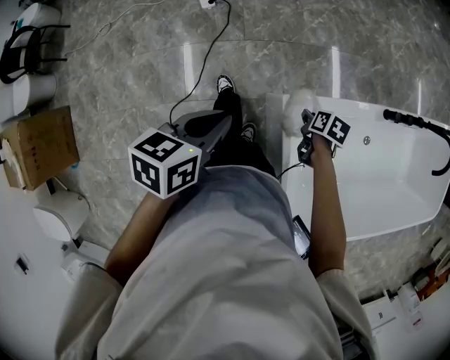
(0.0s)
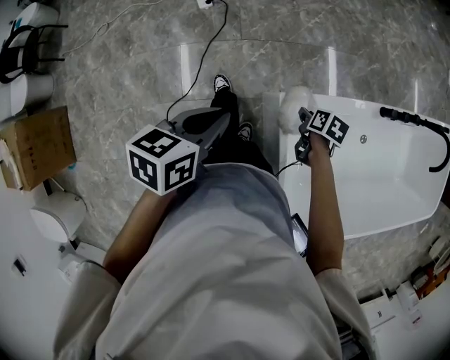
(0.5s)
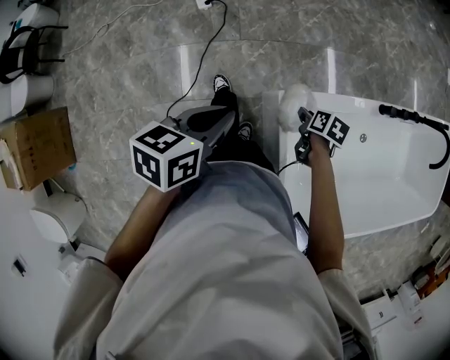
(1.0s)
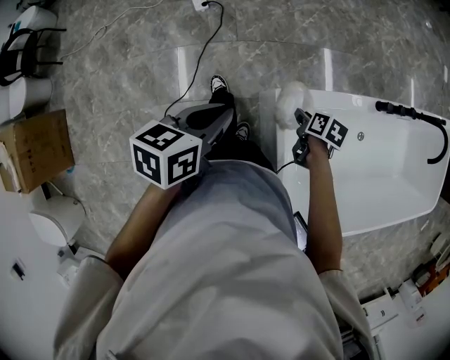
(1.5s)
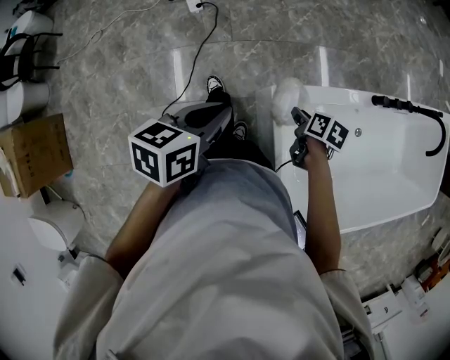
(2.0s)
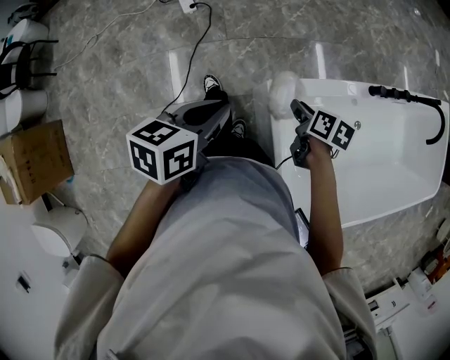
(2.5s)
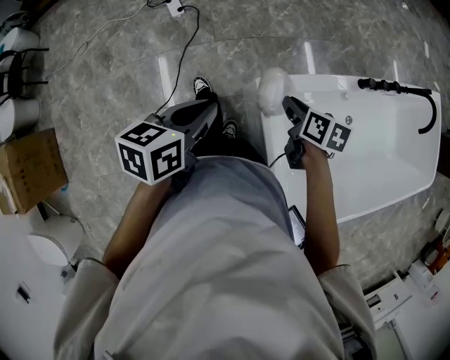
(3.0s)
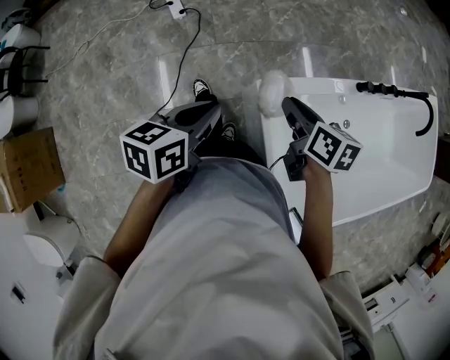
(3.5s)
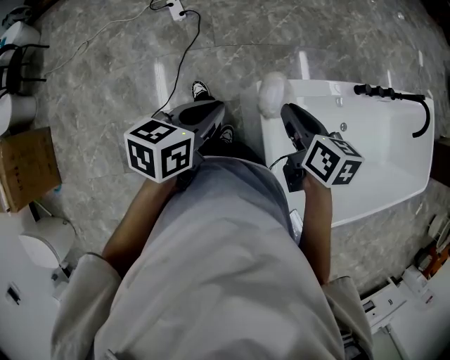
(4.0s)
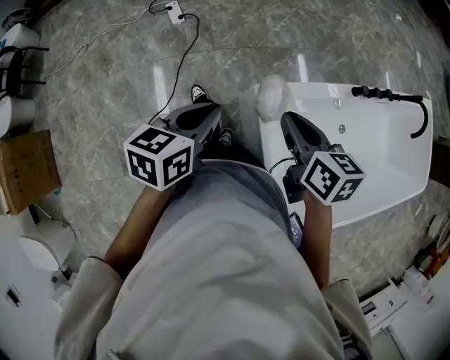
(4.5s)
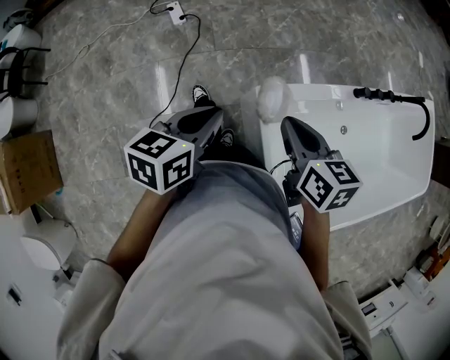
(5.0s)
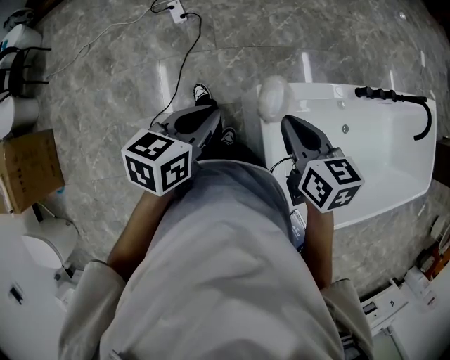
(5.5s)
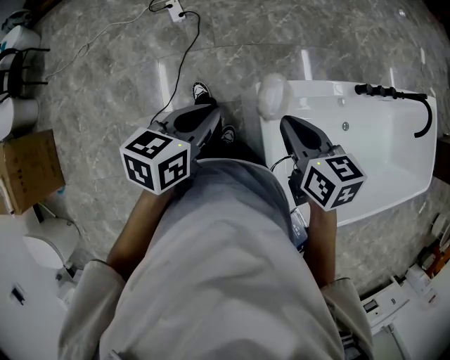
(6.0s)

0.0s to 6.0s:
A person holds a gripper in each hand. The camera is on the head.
0.0s to 2.0s: The right gripper changes place by approximately 5 cm.
2.0s to 4.0s: The right gripper moves upward, roughly 20 cm, and turns by approximately 30 degrees.
4.0s to 6.0s: There are only small adjustments of the grippers.

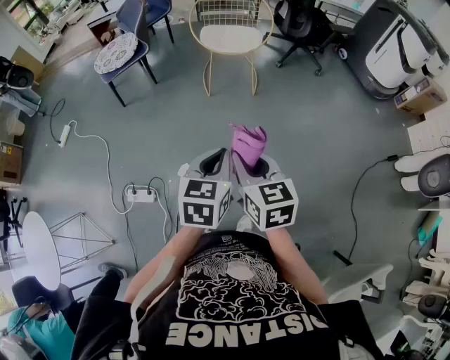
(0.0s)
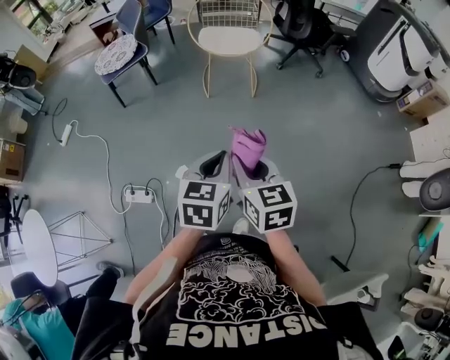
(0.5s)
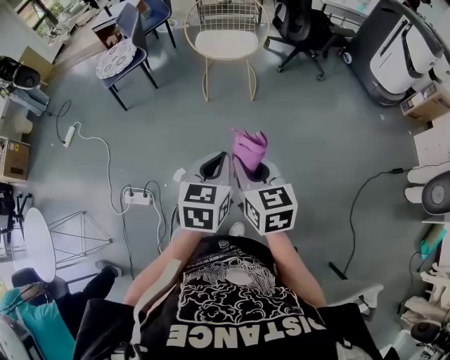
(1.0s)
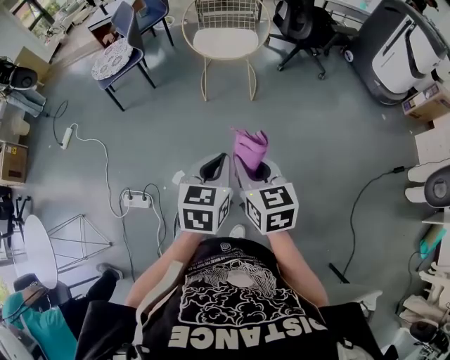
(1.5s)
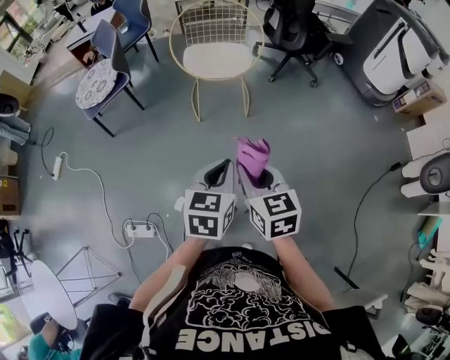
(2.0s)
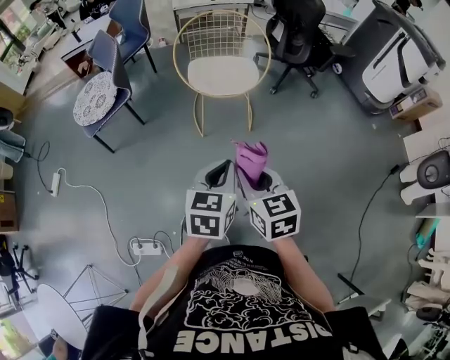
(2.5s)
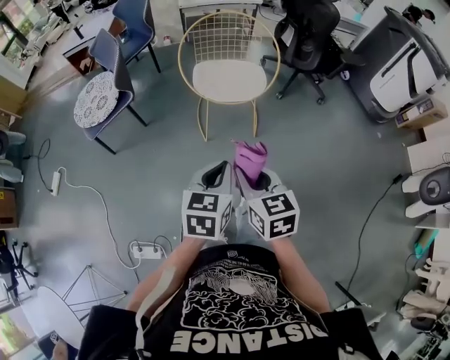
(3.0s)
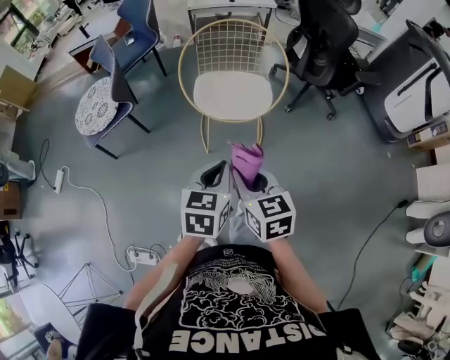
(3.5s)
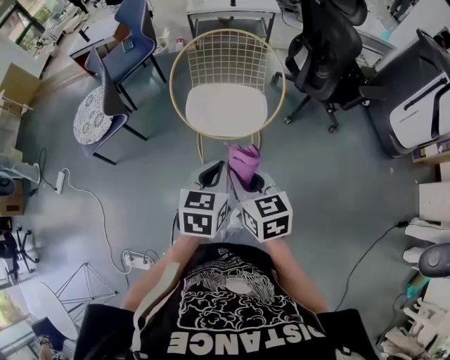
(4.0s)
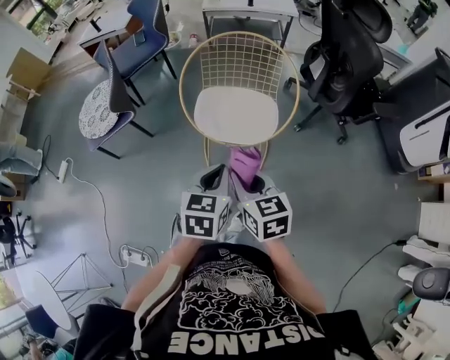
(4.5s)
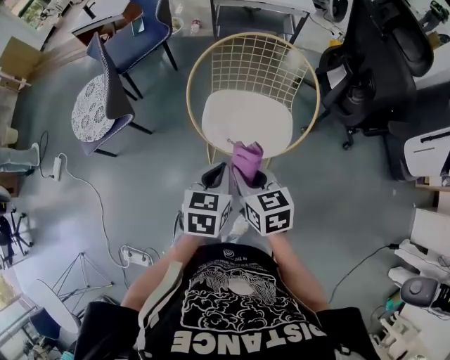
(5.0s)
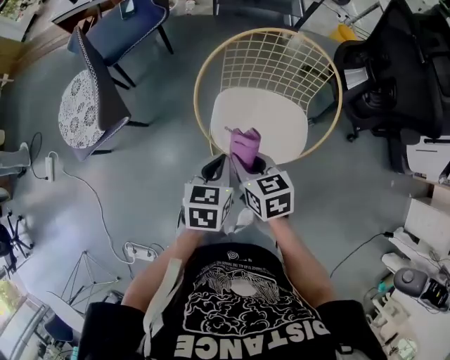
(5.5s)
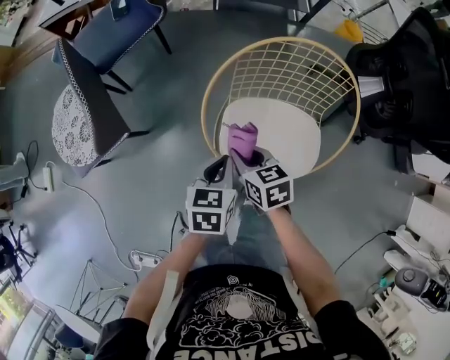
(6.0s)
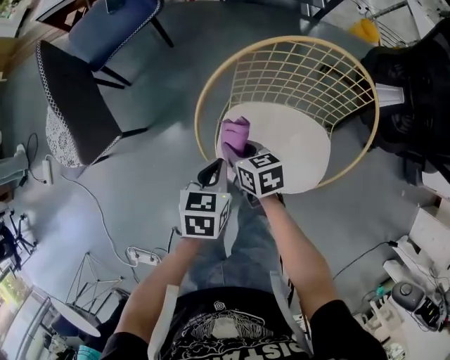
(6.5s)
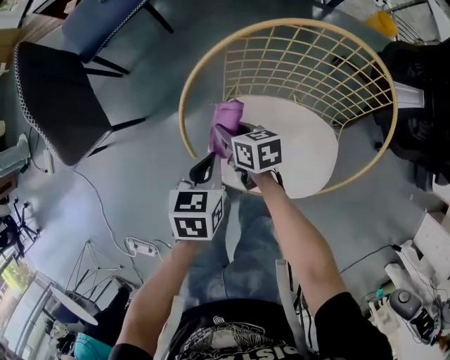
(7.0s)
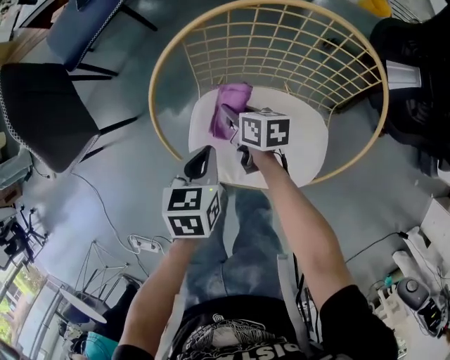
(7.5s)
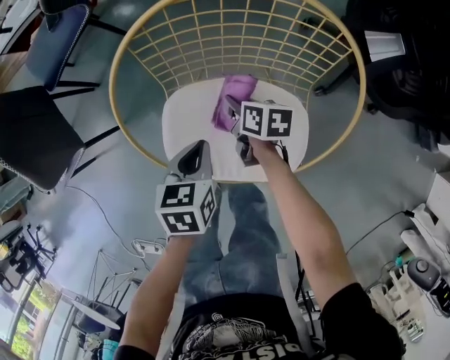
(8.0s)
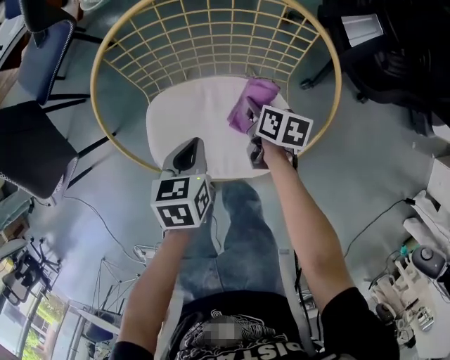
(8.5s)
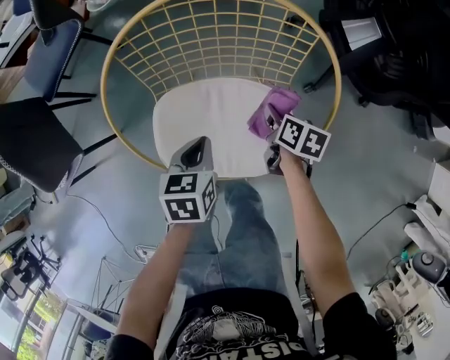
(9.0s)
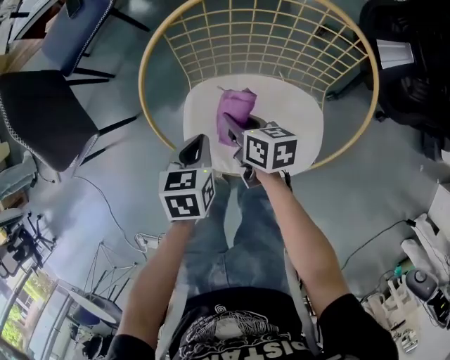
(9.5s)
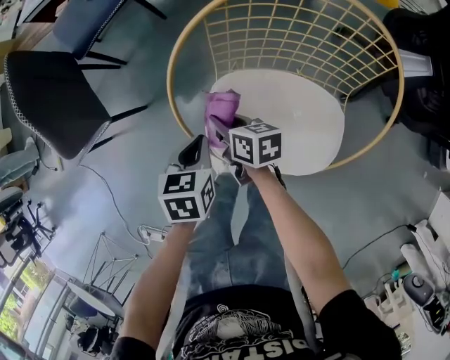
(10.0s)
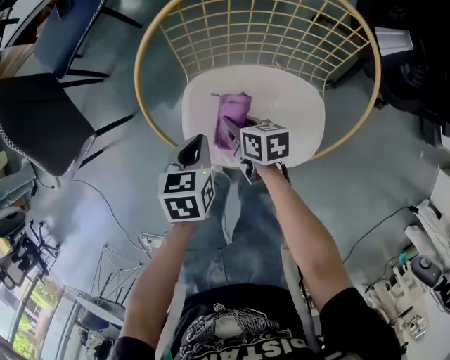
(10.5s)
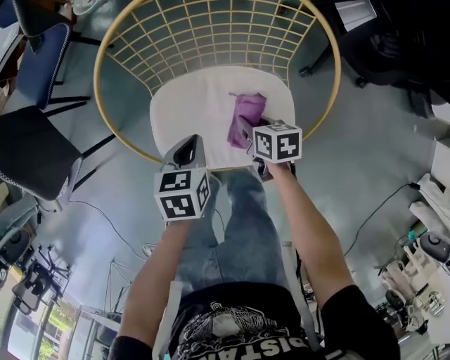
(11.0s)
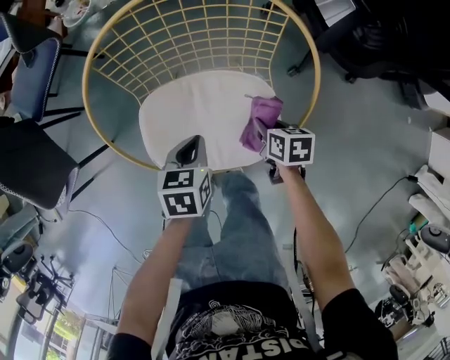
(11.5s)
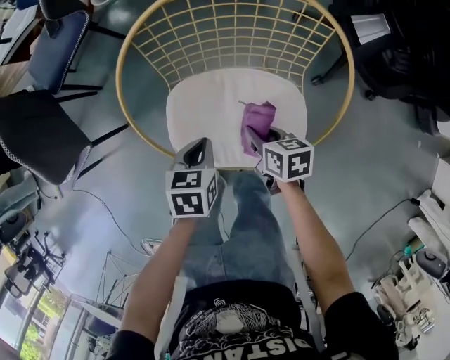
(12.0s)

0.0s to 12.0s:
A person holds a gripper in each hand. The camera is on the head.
0.0s to 2.0s: The two grippers go about 20 cm forward.
2.0s to 4.0s: The grippers both shift forward by roughly 35 cm.
4.0s to 6.0s: The two grippers go some 40 cm forward, downward and to the left. The right gripper changes its angle by roughly 20 degrees.
6.0s to 8.0s: The left gripper shifts about 15 cm to the right and downward. Meanwhile the right gripper moves downward, to the right and forward, some 25 cm, and rotates roughly 30 degrees.
8.0s to 10.0s: The left gripper moves about 10 cm. The right gripper moves approximately 20 cm.
10.0s to 12.0s: The left gripper is displaced to the right by roughly 10 cm, while the right gripper moves to the right, approximately 20 cm.

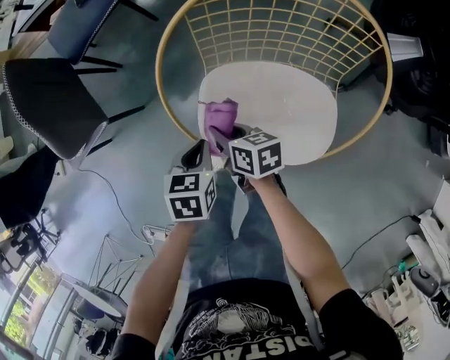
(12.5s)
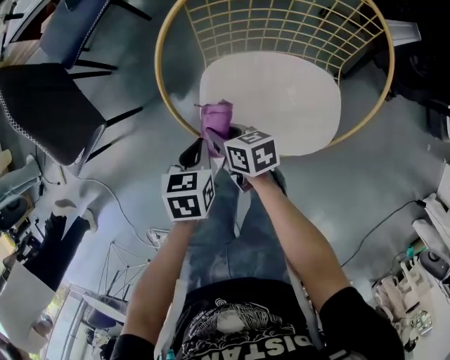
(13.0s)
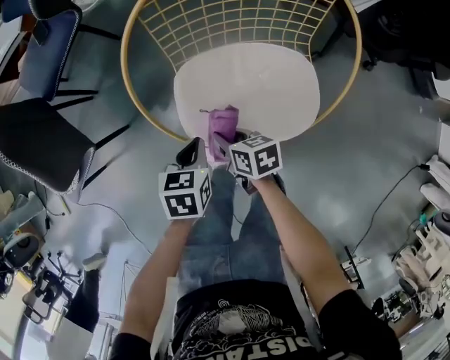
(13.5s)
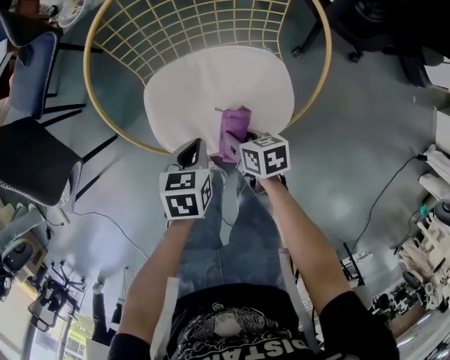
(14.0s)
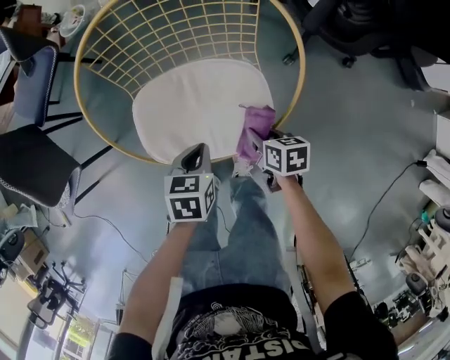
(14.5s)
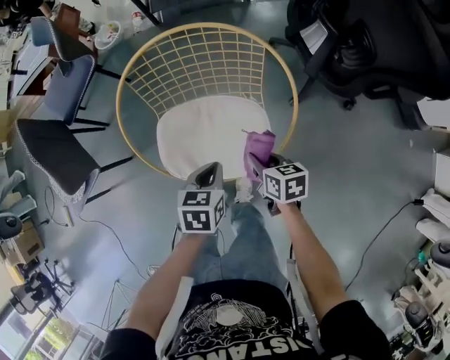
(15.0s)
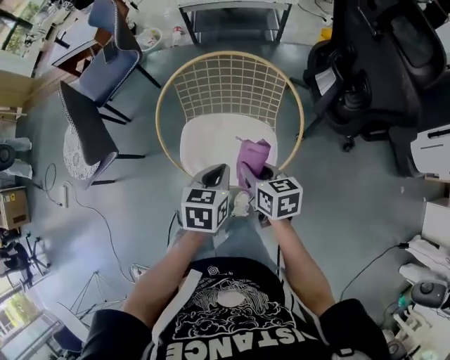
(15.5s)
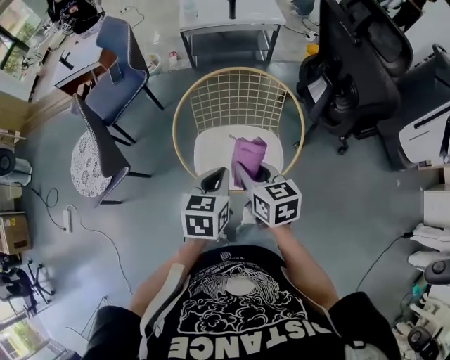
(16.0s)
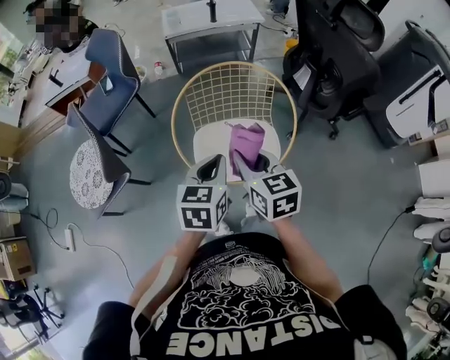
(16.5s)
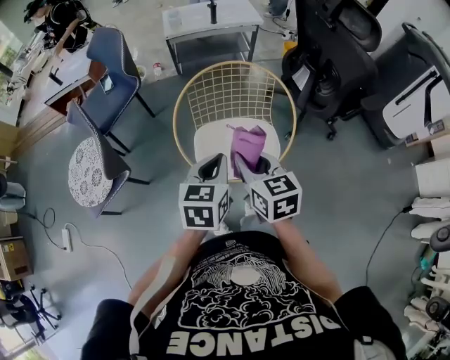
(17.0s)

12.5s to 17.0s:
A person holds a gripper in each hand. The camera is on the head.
12.5s to 14.5s: The left gripper travels to the right by roughly 15 cm; the right gripper goes some 25 cm to the right and backward, and rotates roughly 30 degrees.
14.5s to 17.0s: The right gripper goes about 40 cm upward and to the left, and changes its angle by approximately 40 degrees. The left gripper goes some 30 cm upward, and turns by some 30 degrees.

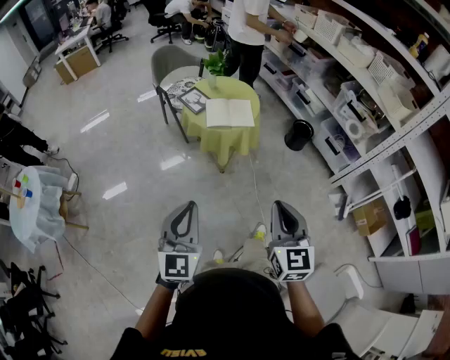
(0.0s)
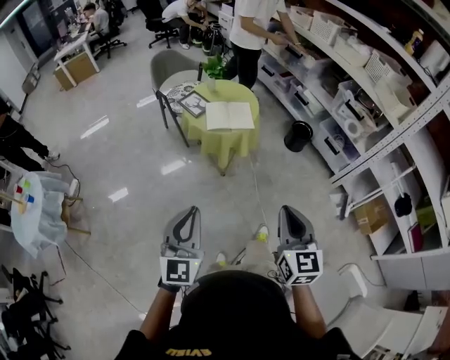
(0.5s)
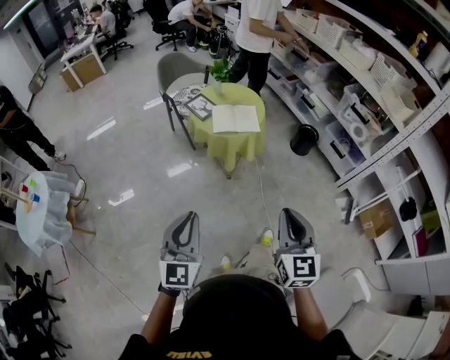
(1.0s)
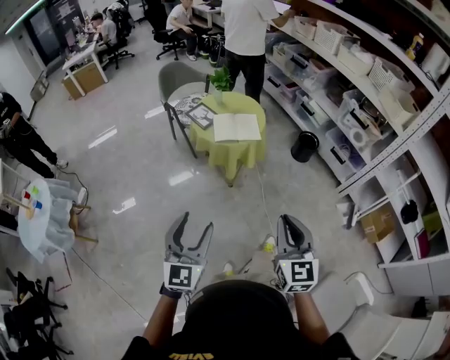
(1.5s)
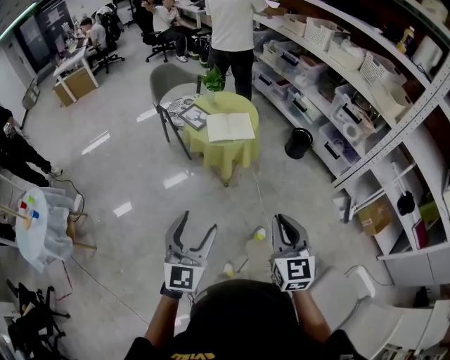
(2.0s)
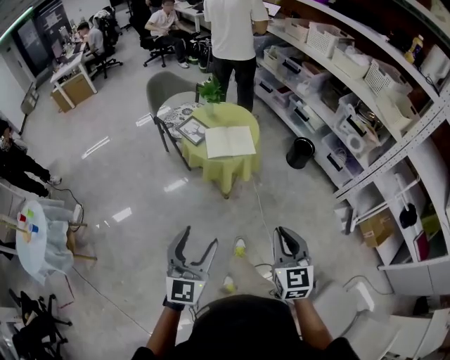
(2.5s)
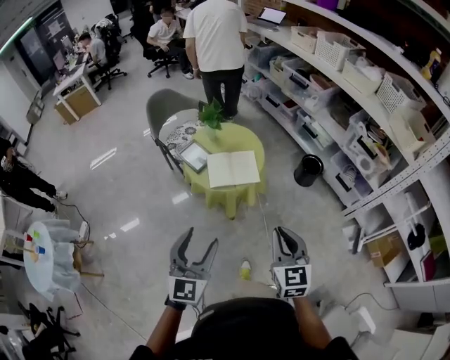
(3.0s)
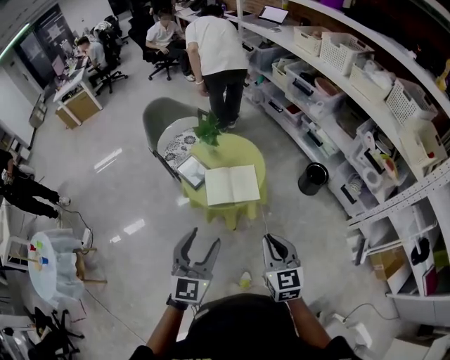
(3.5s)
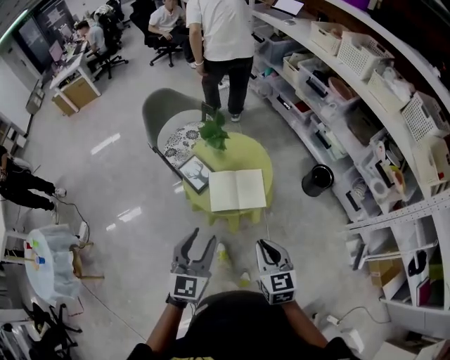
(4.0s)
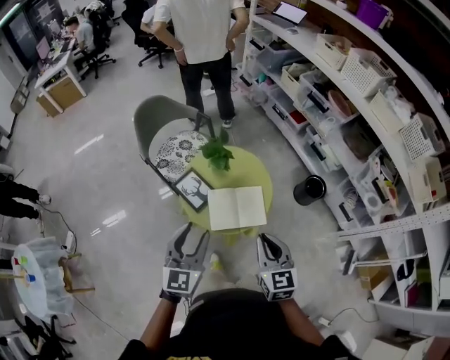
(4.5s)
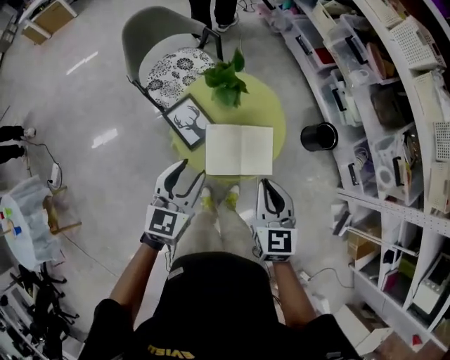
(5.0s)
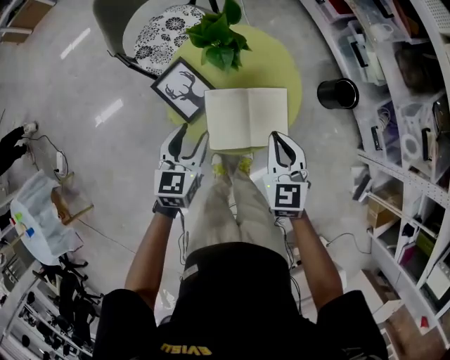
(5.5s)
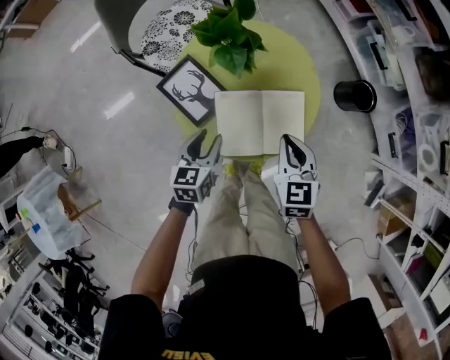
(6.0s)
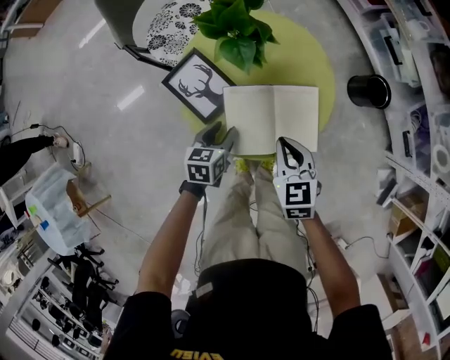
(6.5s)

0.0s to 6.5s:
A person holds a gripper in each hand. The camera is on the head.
0.0s to 2.0s: The left gripper opens its fingers.
2.0s to 4.5s: The two grippers travel together, forward, some 50 cm. The left gripper closes.
4.5s to 6.5s: The left gripper shifts some 40 cm downward, and points its fingers roughly 40 degrees further downward. The right gripper is displaced downward and forward by some 35 cm, and turns by approximately 20 degrees.
